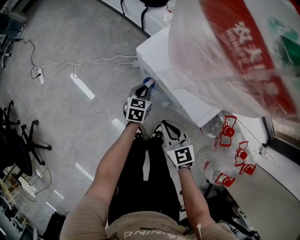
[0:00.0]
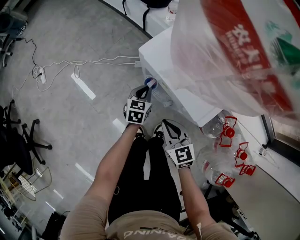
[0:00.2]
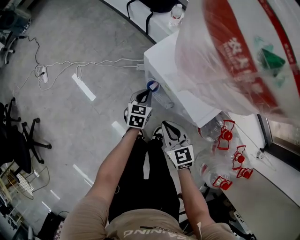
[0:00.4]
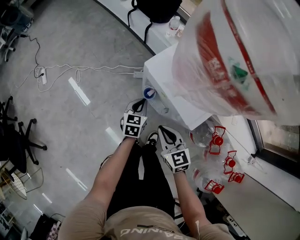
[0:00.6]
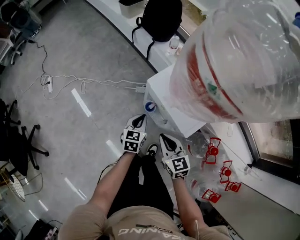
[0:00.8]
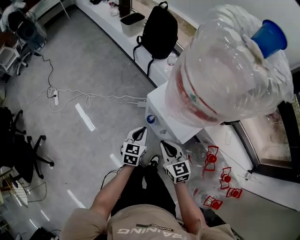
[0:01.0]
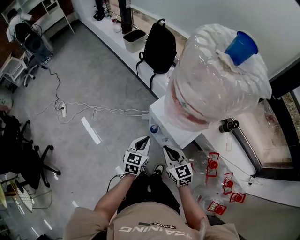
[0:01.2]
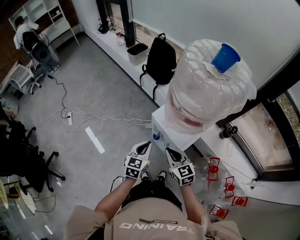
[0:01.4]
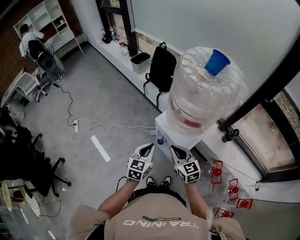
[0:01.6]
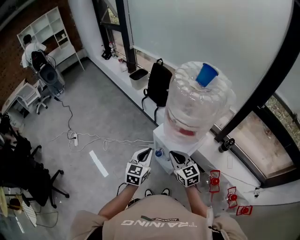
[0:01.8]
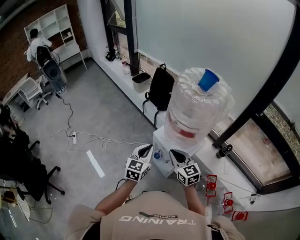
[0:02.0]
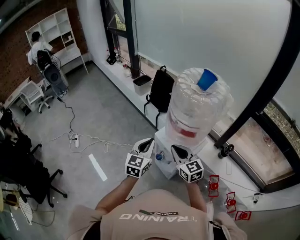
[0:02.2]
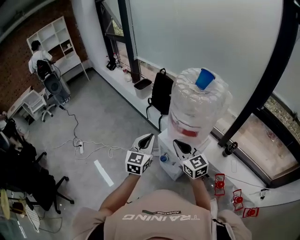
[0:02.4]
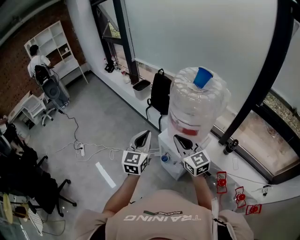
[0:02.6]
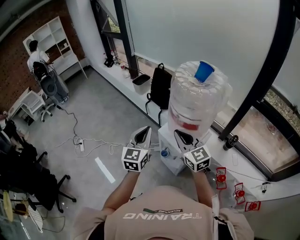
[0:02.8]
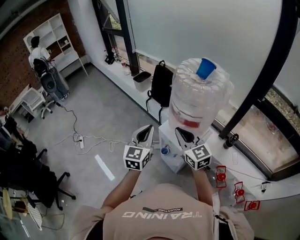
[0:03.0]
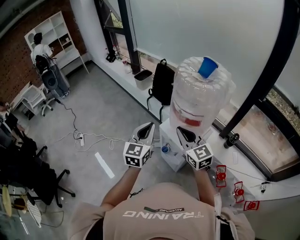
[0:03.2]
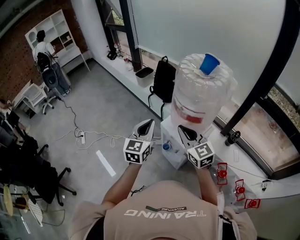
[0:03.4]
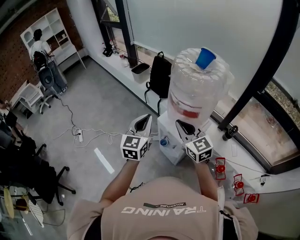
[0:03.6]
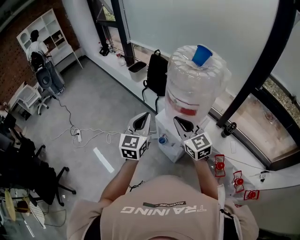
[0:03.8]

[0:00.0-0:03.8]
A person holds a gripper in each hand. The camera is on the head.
0:00.0 to 0:01.2: The grippers both shift upward by approximately 25 cm.
0:01.2 to 0:02.6: Both grippers move upward, some 25 cm. The right gripper swivels roughly 20 degrees, while the left gripper turns by some 30 degrees.
0:02.6 to 0:03.8: The grippers make only small movements.

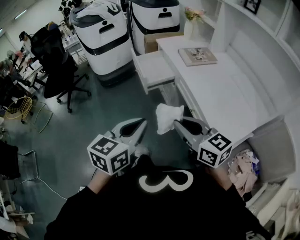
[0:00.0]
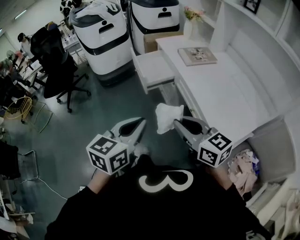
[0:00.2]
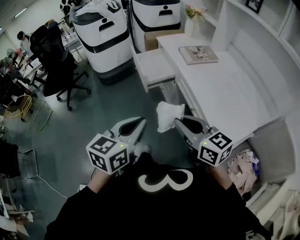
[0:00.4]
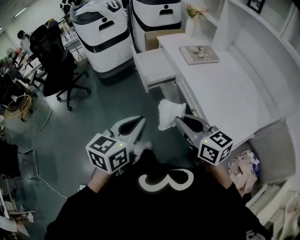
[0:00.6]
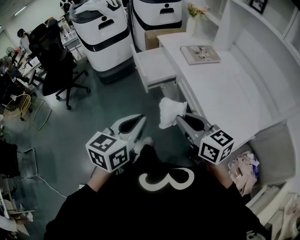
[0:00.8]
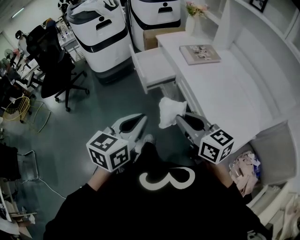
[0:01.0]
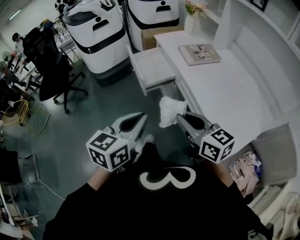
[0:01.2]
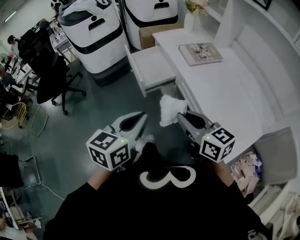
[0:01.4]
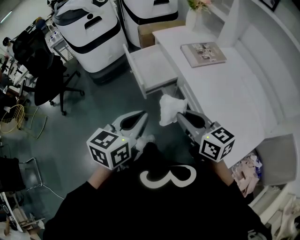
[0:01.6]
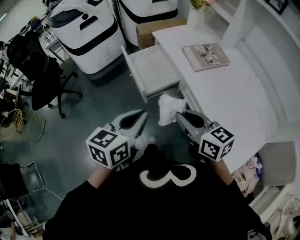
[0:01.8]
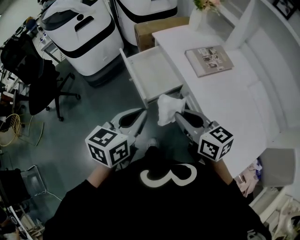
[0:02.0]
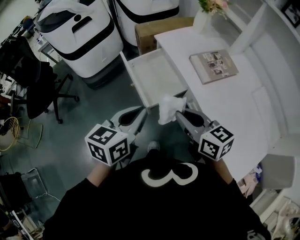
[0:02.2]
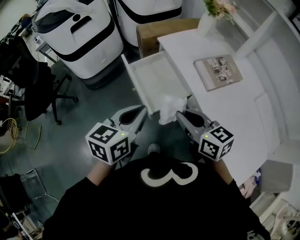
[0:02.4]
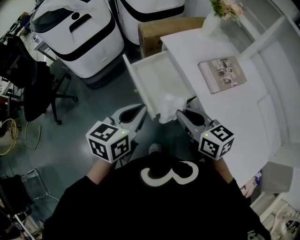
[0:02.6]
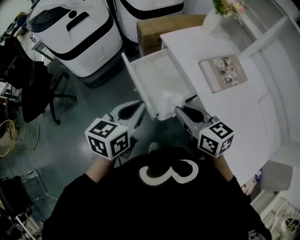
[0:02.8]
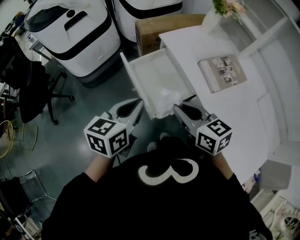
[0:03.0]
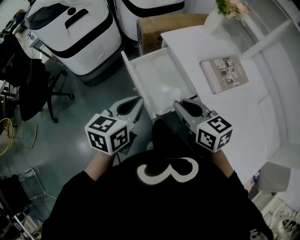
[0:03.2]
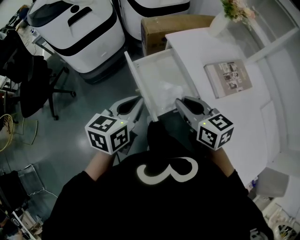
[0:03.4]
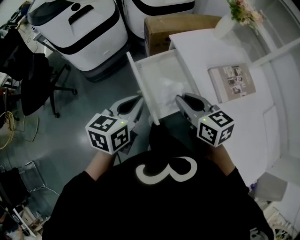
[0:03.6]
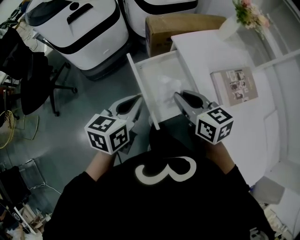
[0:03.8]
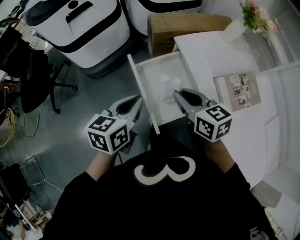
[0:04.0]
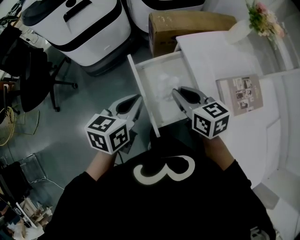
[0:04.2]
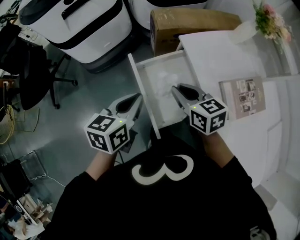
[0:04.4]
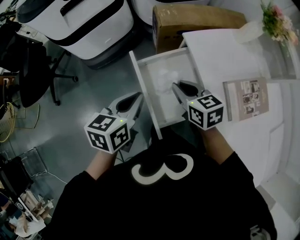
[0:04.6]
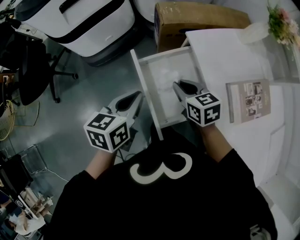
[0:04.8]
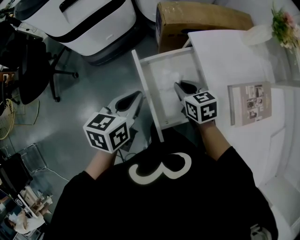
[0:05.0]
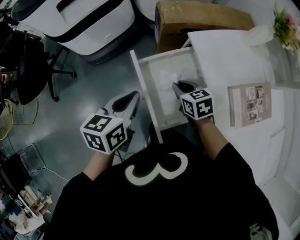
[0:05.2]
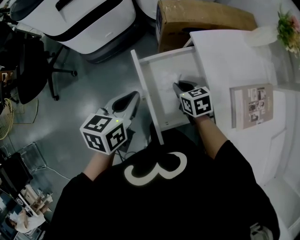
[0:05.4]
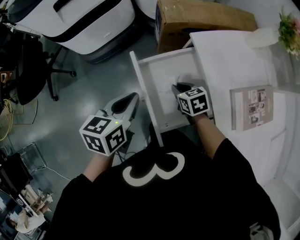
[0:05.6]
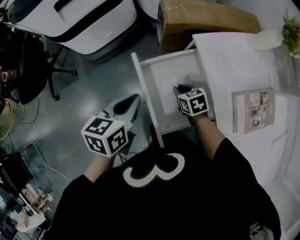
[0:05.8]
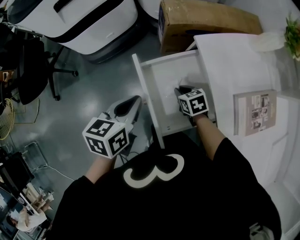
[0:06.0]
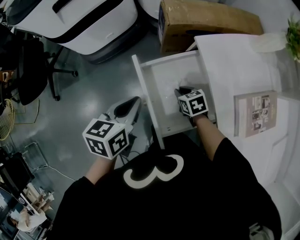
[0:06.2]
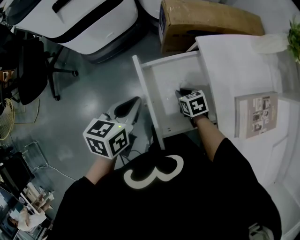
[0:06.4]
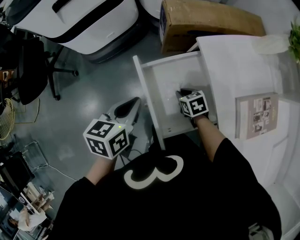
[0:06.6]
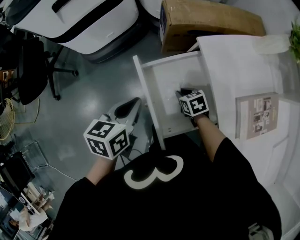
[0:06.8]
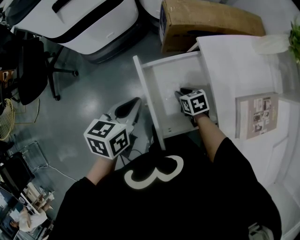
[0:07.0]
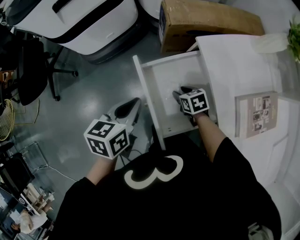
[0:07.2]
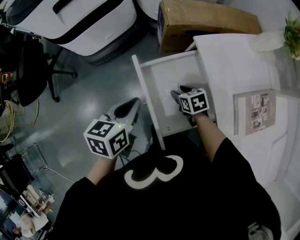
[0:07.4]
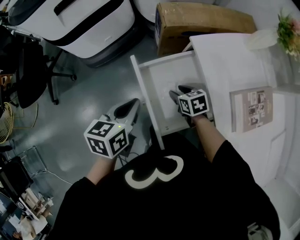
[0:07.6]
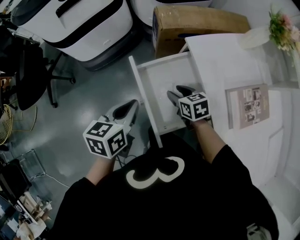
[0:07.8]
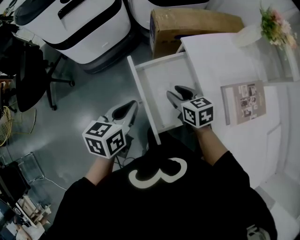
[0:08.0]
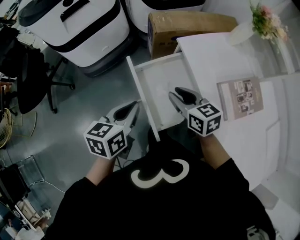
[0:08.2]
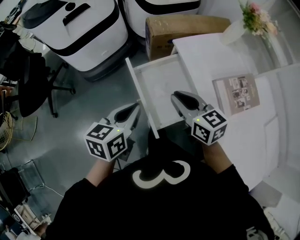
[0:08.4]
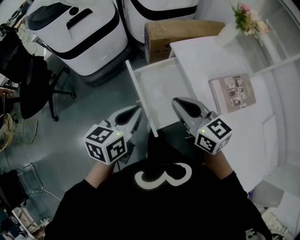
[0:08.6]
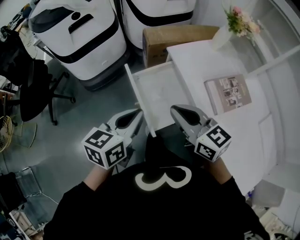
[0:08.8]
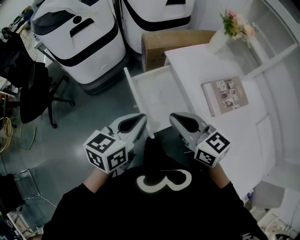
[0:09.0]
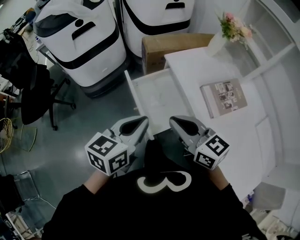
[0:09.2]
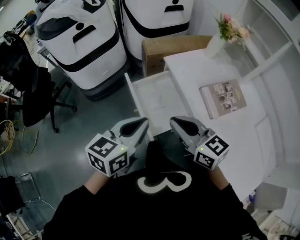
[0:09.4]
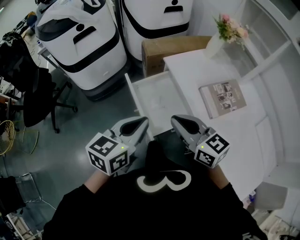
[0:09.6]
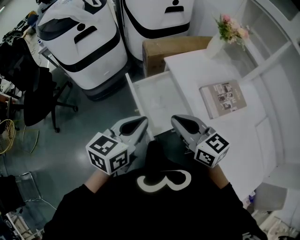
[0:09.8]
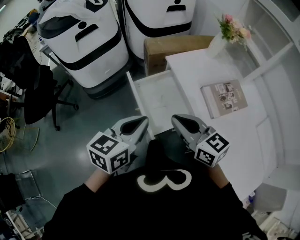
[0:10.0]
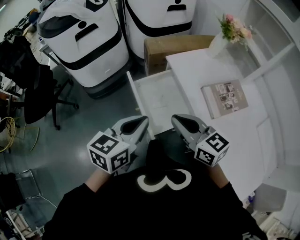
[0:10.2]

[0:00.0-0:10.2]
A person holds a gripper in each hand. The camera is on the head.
0:00.0 to 0:01.4: The two grippers go roughly 15 cm forward.
0:01.4 to 0:03.0: The two grippers go approximately 35 cm forward.
0:03.0 to 0:04.4: The two grippers go some 20 cm forward and downward.
0:04.4 to 0:05.8: The left gripper travels downward by about 5 cm. Meanwhile the right gripper travels downward by approximately 20 cm, and swivels approximately 20 degrees.
0:05.8 to 0:07.2: The right gripper opens.
0:07.2 to 0:08.8: The left gripper shifts some 20 cm upward and backward, and rotates some 20 degrees, while the right gripper heads upward and backward, covering some 40 cm, tips its fingers upward by about 40 degrees, and closes.
0:08.8 to 0:10.2: There are only small adjustments of the grippers.

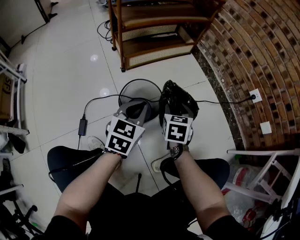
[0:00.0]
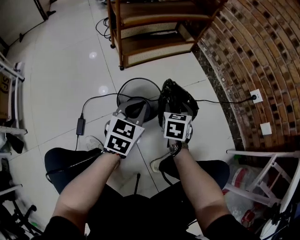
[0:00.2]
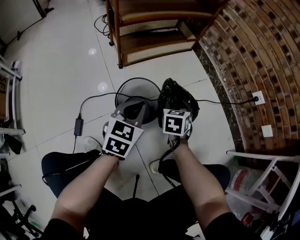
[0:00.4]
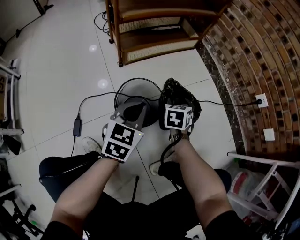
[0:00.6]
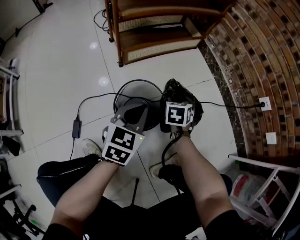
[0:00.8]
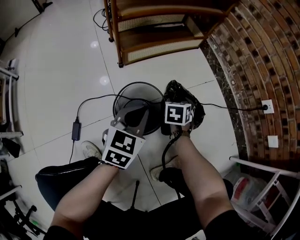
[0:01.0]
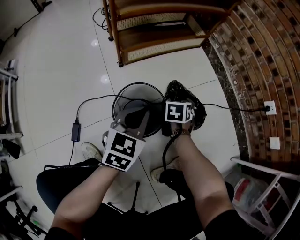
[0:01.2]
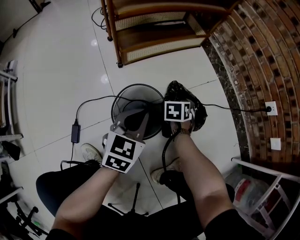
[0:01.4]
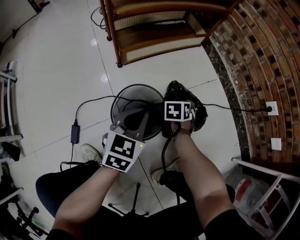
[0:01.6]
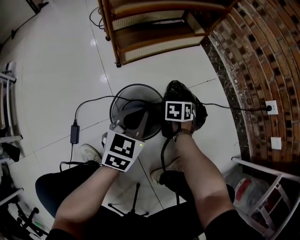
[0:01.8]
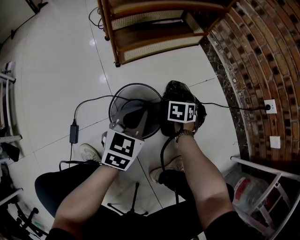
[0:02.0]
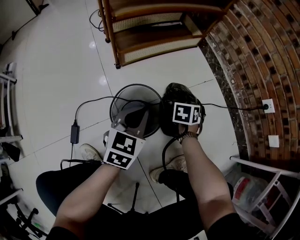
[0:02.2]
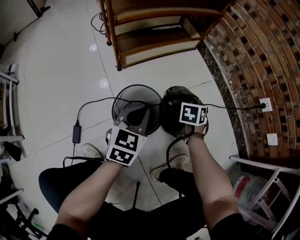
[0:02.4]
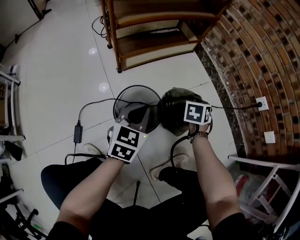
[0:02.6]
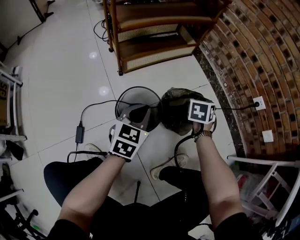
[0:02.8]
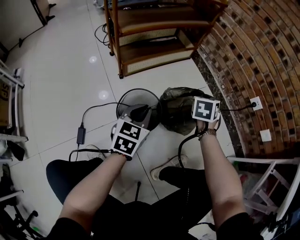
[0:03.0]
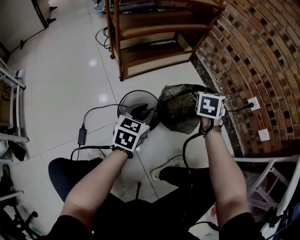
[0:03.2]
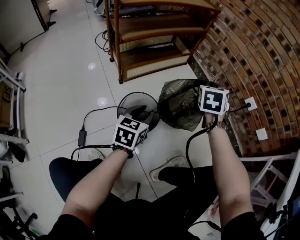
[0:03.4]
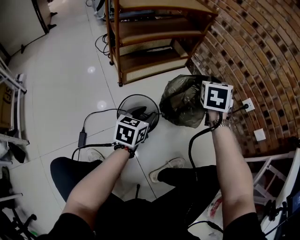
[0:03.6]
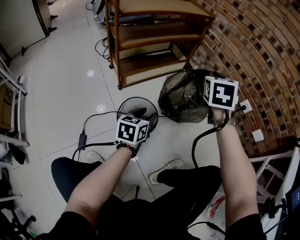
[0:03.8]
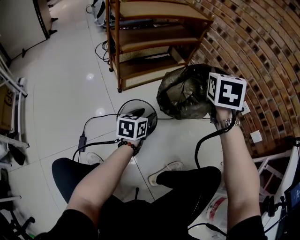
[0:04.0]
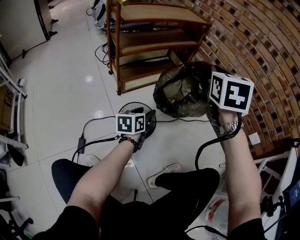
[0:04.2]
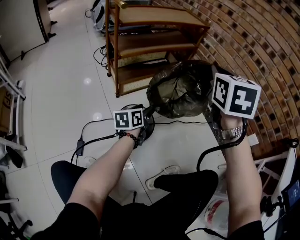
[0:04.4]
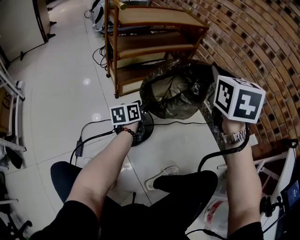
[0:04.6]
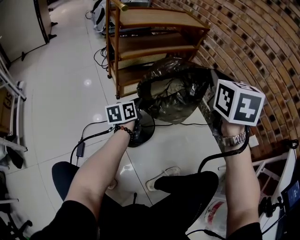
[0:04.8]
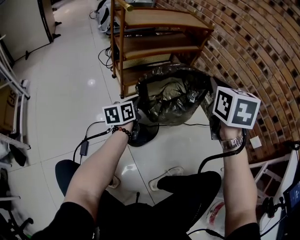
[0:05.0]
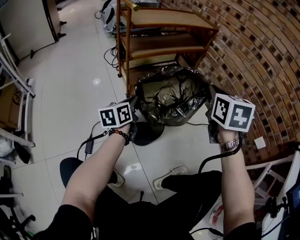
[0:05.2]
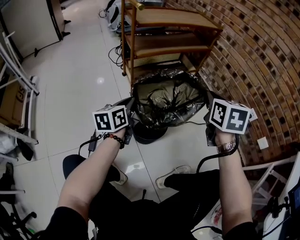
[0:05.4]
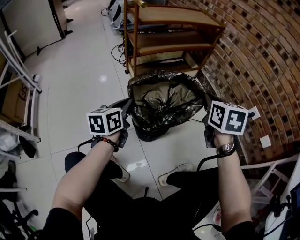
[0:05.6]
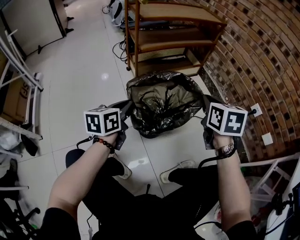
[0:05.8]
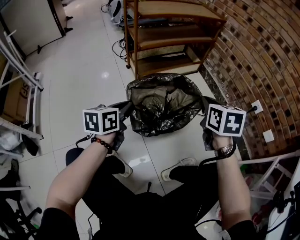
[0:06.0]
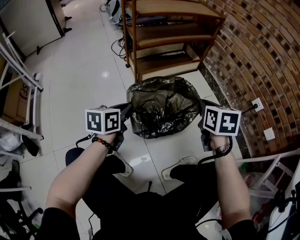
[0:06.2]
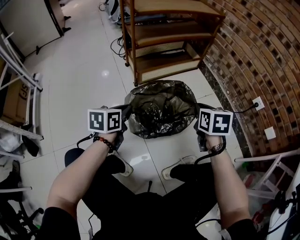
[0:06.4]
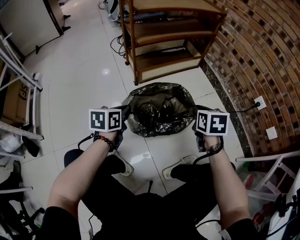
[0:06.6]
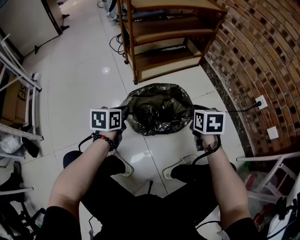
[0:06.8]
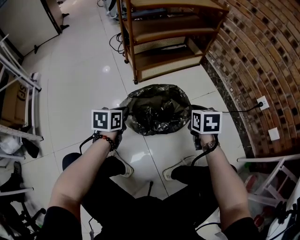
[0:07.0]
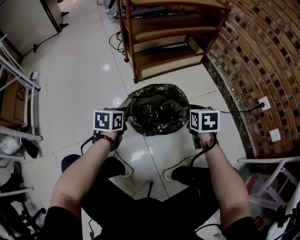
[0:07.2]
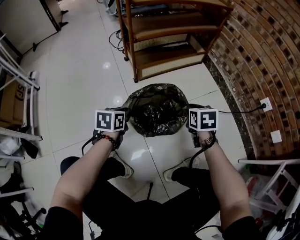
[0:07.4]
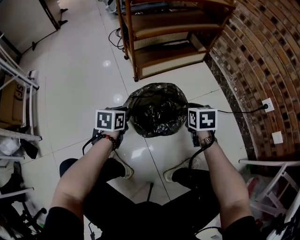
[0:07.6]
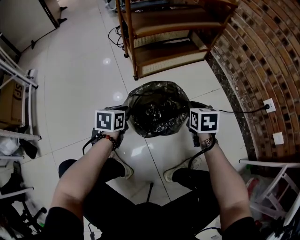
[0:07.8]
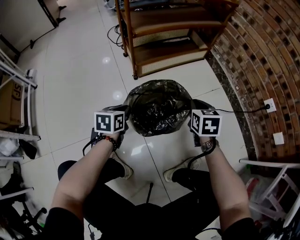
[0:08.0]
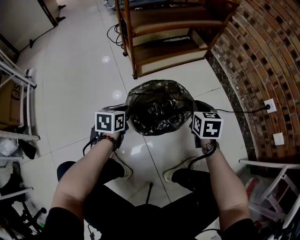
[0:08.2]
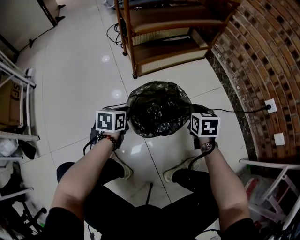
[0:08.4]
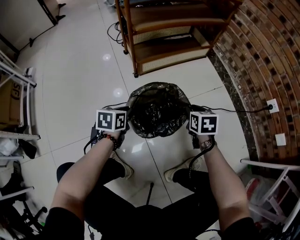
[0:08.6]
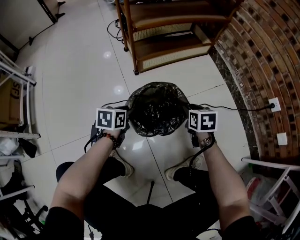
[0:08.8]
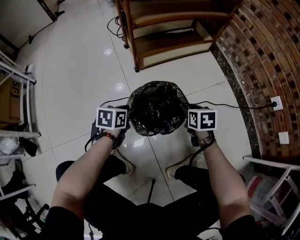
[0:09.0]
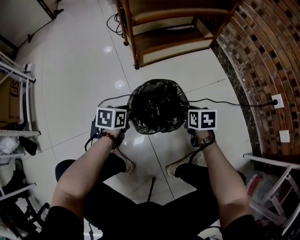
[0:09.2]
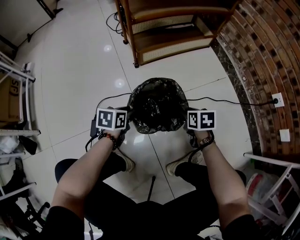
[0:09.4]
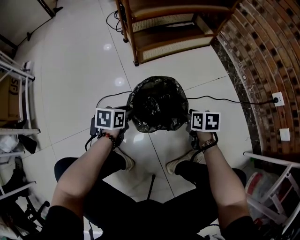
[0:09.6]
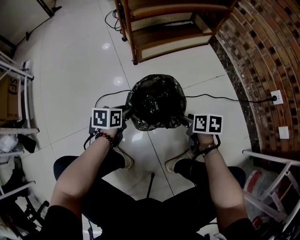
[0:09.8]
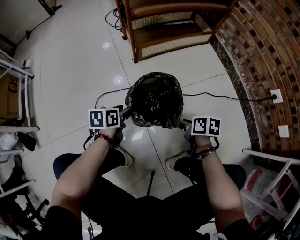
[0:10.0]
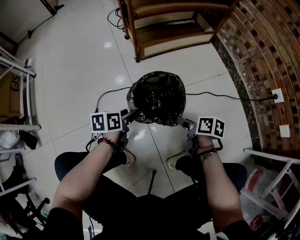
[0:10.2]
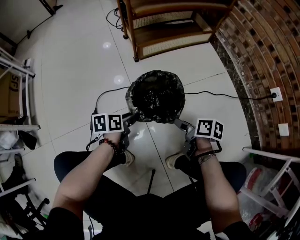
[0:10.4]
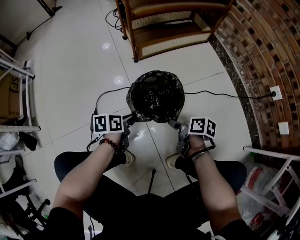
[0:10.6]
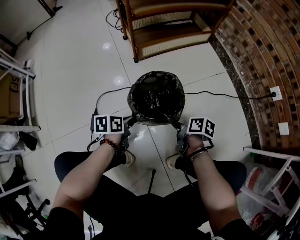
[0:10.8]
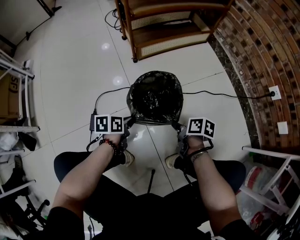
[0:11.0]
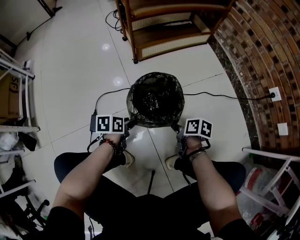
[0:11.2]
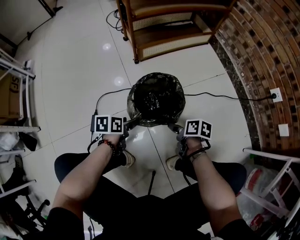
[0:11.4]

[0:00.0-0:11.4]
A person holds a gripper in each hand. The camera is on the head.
0:00.0 to 0:01.4: The left gripper heads forward and downward, covering about 10 cm; the right gripper travels downward and forward by some 20 cm, and swivels roughly 20 degrees.
0:01.4 to 0:02.8: The right gripper is displaced upward and to the right by about 20 cm, and closes up.
0:02.8 to 0:04.2: The right gripper shifts roughly 35 cm upward, and rotates roughly 30 degrees. The left gripper swivels approximately 30 degrees, and opens.
0:04.2 to 0:05.6: The right gripper moves downward and backward, approximately 15 cm, and turns by approximately 20 degrees; the left gripper heads to the left, upward and backward, covering about 20 cm, and closes up.
0:05.6 to 0:07.2: The grippers both shift downward by about 15 cm. The left gripper turns by some 20 degrees.
0:07.2 to 0:08.6: The grippers both shift downward by about 5 cm.
0:08.6 to 0:10.0: The right gripper goes some 15 cm backward and downward, swivels roughly 40 degrees, and opens its fingers. The left gripper moves backward, approximately 5 cm, and opens.
0:10.0 to 0:11.4: The right gripper changes place by about 5 cm, and closes and opens again. The left gripper shifts approximately 5 cm backward, and closes and opens again.
